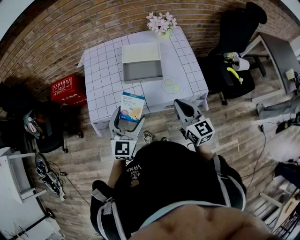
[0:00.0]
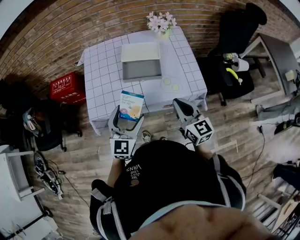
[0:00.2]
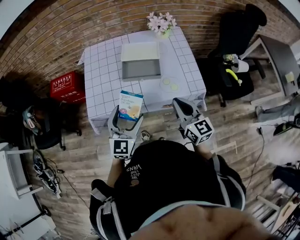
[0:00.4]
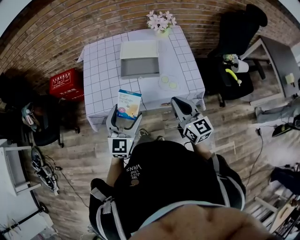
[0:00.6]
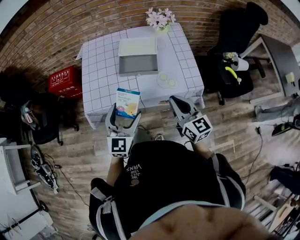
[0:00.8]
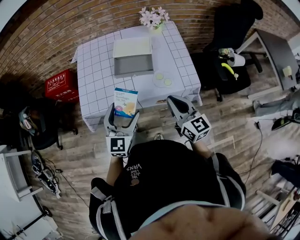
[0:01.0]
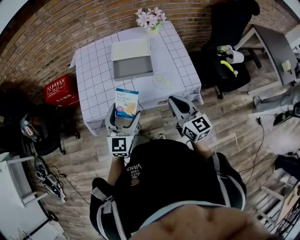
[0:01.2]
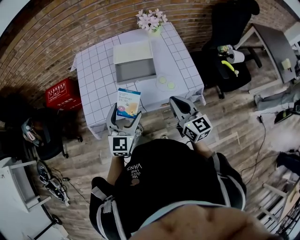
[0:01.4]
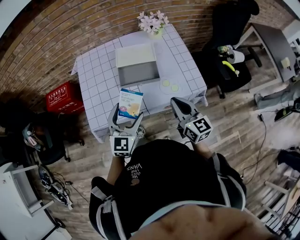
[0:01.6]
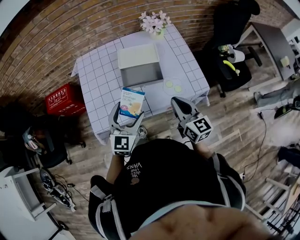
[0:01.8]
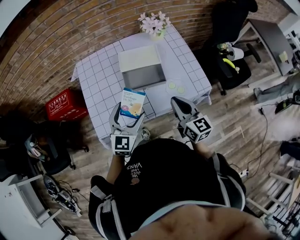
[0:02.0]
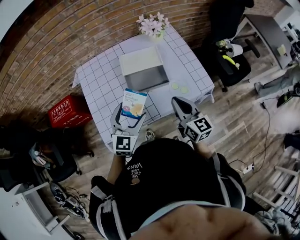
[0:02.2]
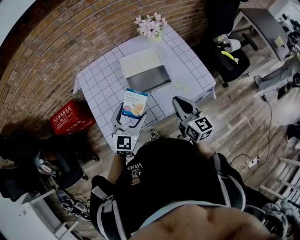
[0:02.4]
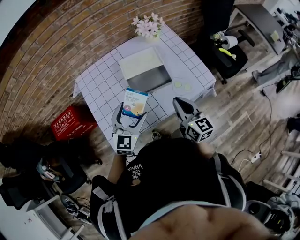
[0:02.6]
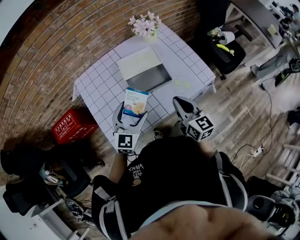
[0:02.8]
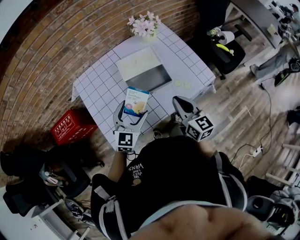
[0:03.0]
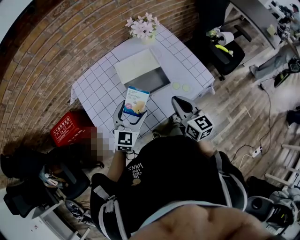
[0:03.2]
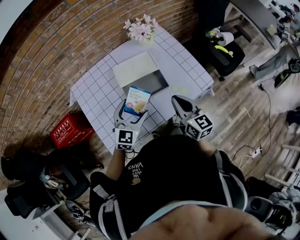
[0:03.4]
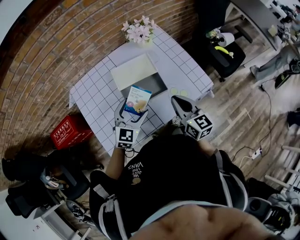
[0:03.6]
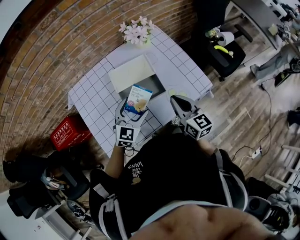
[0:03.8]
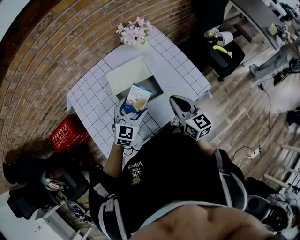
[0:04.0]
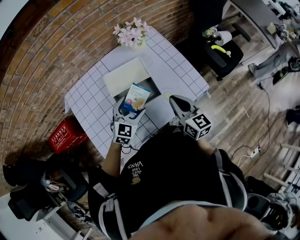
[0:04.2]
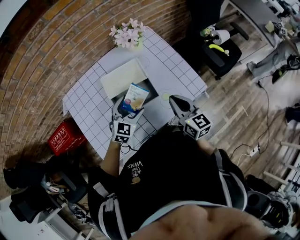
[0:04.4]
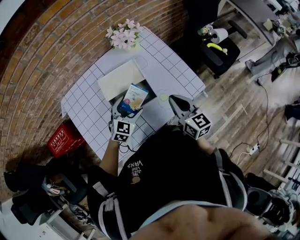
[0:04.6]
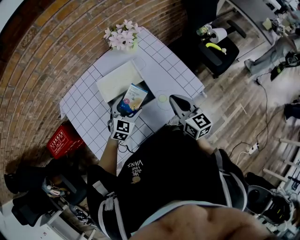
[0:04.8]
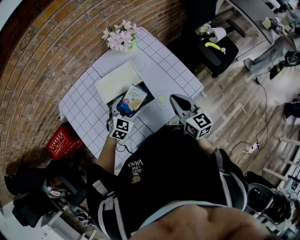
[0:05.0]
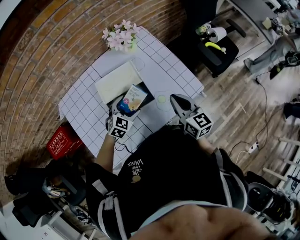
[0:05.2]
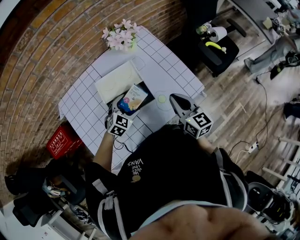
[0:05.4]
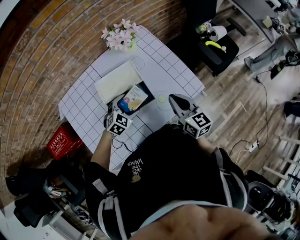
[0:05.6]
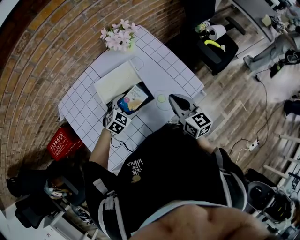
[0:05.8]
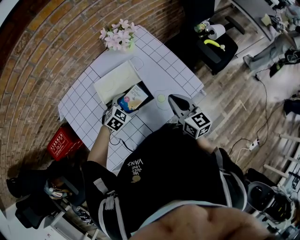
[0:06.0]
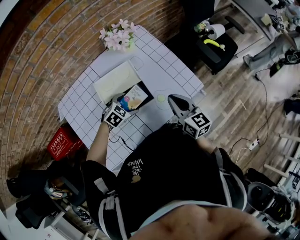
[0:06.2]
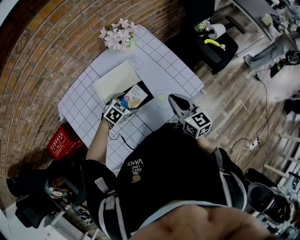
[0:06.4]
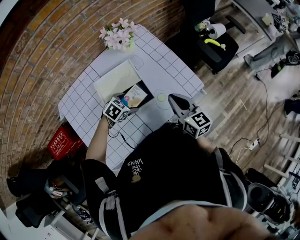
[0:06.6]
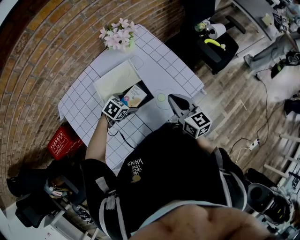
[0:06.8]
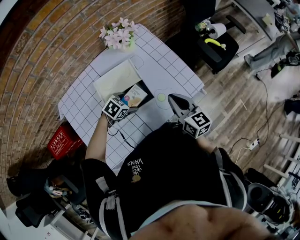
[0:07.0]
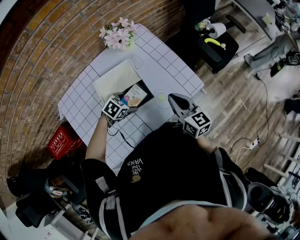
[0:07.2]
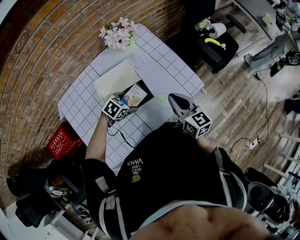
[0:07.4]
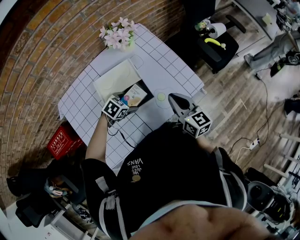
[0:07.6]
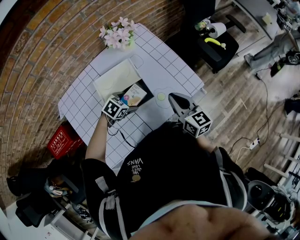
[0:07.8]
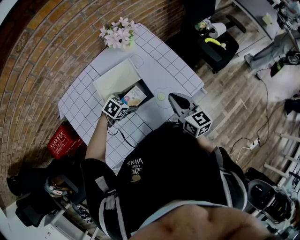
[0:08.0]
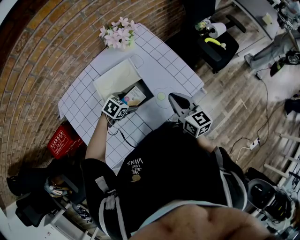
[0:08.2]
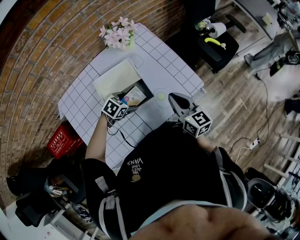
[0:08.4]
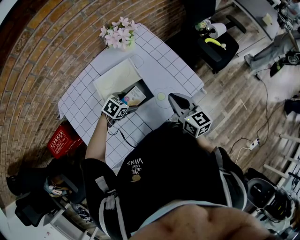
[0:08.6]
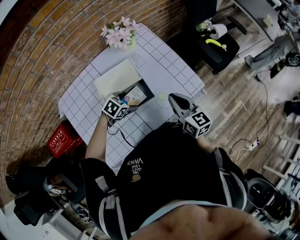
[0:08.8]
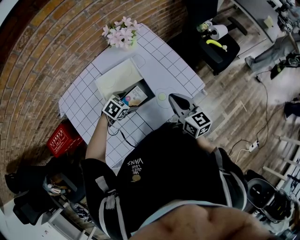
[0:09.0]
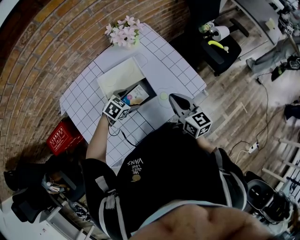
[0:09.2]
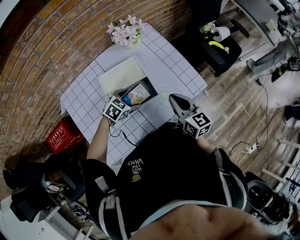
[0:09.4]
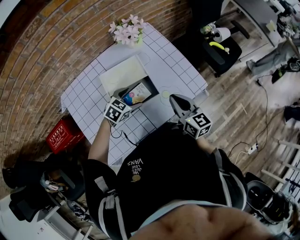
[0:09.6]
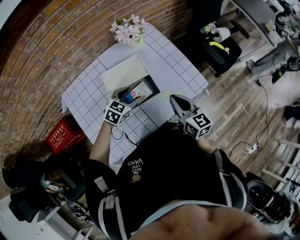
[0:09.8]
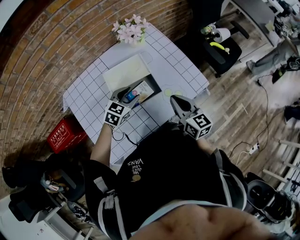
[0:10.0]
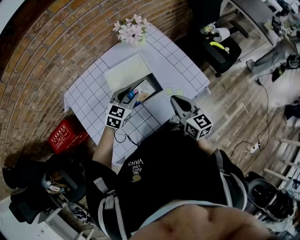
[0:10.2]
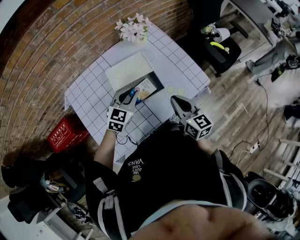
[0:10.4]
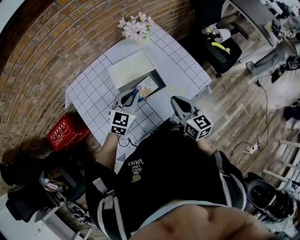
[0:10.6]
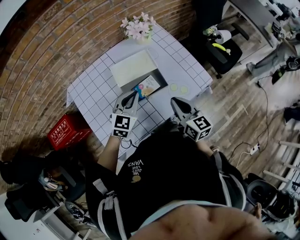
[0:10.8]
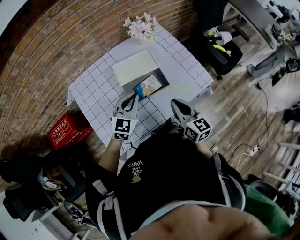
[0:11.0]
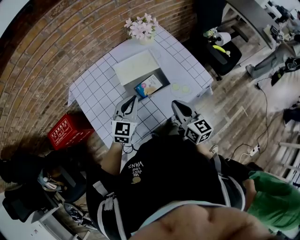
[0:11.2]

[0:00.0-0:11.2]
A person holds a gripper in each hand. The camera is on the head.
0:00.0 to 0:01.6: The grippers make only small movements.
0:01.6 to 0:03.2: The right gripper heads to the left and forward, covering about 10 cm. Meanwhile the left gripper travels forward and to the left by some 15 cm, and rotates approximately 20 degrees.
0:03.2 to 0:04.8: The left gripper travels forward, downward and to the right by approximately 15 cm, while the right gripper goes approximately 15 cm forward and to the right.
0:04.8 to 0:06.4: The left gripper goes some 5 cm downward, and swivels roughly 30 degrees.
0:06.4 to 0:08.0: The grippers make only small movements.
0:08.0 to 0:09.6: The left gripper changes place by about 5 cm.
0:09.6 to 0:11.2: The left gripper moves upward, backward and to the left, roughly 15 cm, tips its fingers upward by some 30 degrees, and closes its fingers. The right gripper travels backward and to the left by roughly 10 cm.

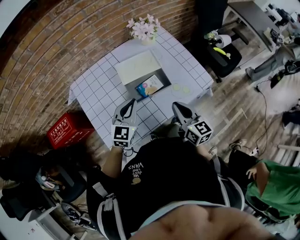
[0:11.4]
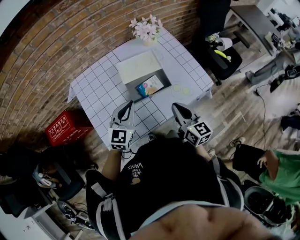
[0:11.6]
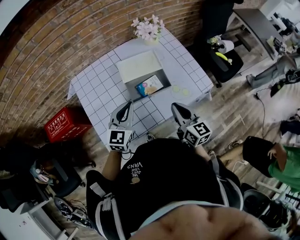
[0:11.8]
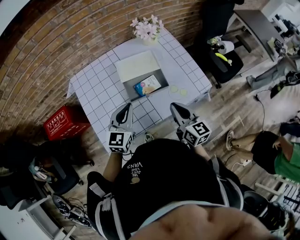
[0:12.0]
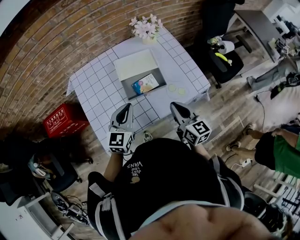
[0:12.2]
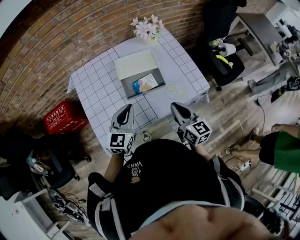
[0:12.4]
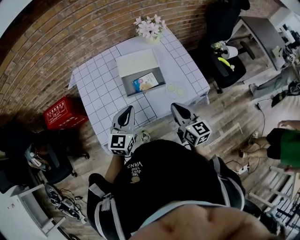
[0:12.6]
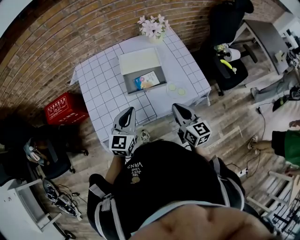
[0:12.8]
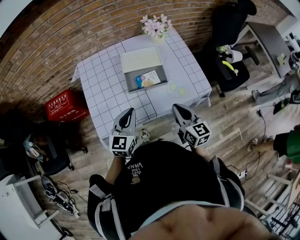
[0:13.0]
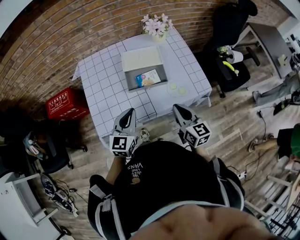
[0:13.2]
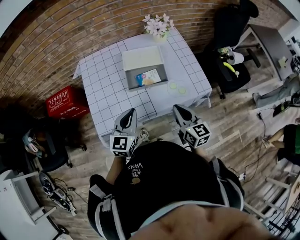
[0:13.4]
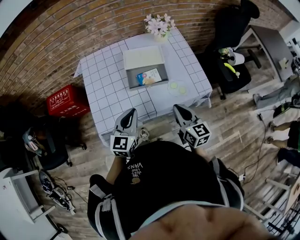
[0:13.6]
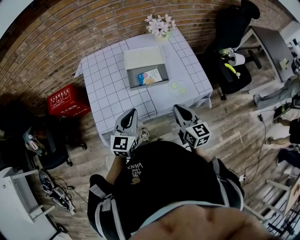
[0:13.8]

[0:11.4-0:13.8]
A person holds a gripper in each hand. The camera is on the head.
0:11.4 to 0:12.6: The left gripper is displaced backward by some 10 cm, while the right gripper changes place by roughly 5 cm.
0:12.6 to 0:13.8: The left gripper shifts approximately 5 cm backward.

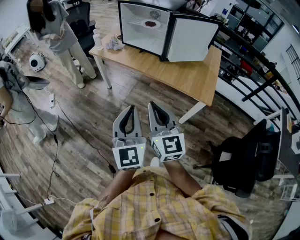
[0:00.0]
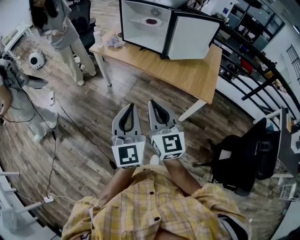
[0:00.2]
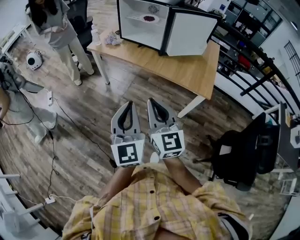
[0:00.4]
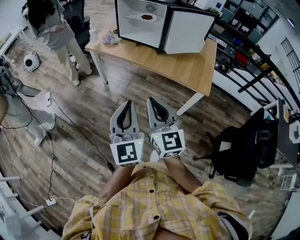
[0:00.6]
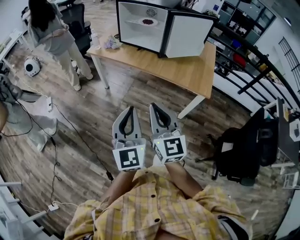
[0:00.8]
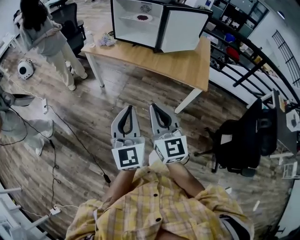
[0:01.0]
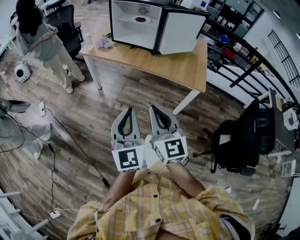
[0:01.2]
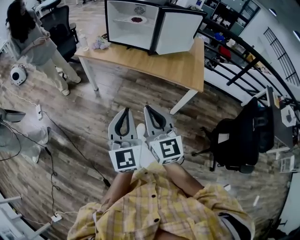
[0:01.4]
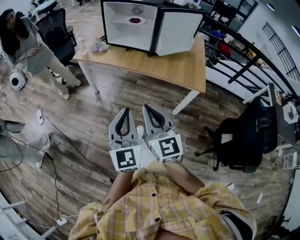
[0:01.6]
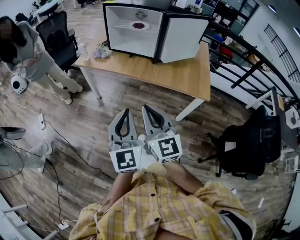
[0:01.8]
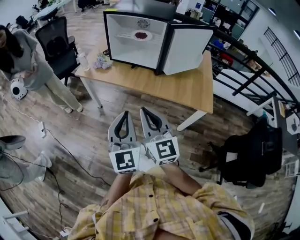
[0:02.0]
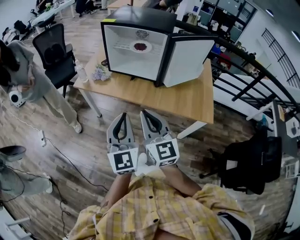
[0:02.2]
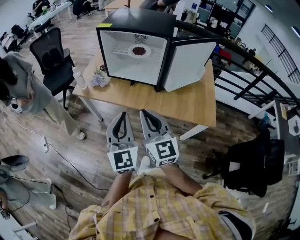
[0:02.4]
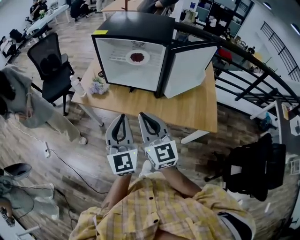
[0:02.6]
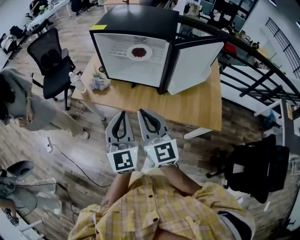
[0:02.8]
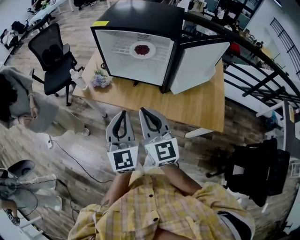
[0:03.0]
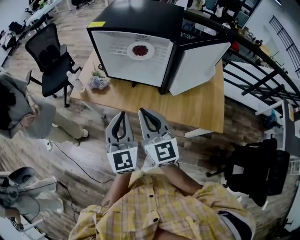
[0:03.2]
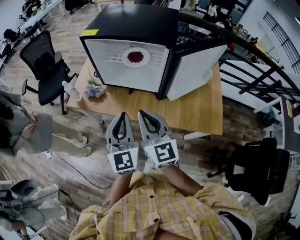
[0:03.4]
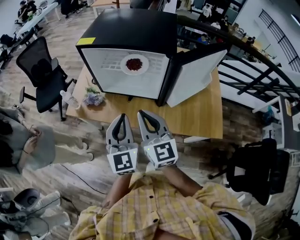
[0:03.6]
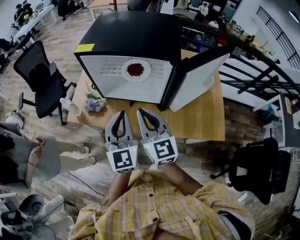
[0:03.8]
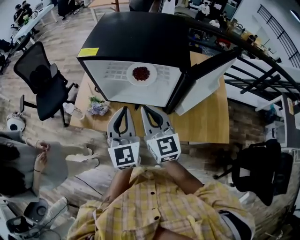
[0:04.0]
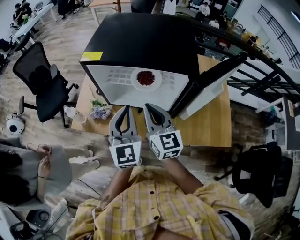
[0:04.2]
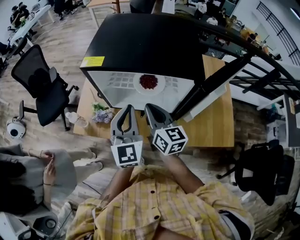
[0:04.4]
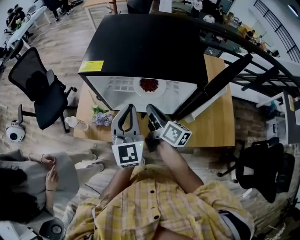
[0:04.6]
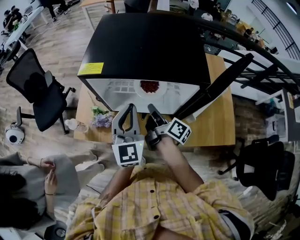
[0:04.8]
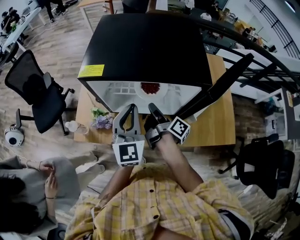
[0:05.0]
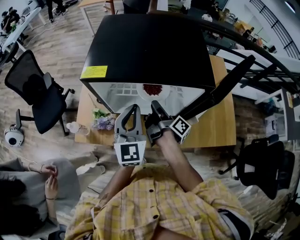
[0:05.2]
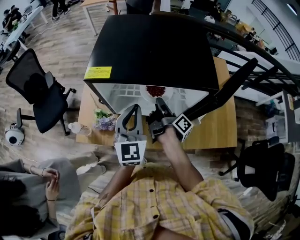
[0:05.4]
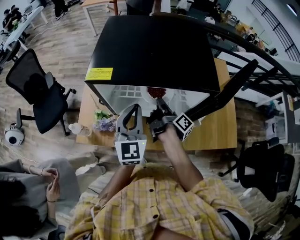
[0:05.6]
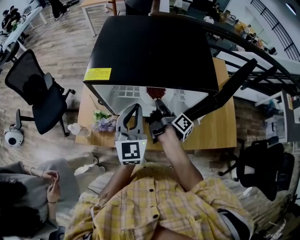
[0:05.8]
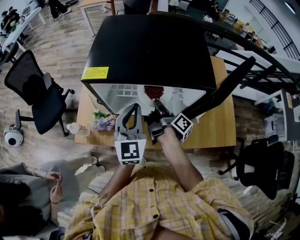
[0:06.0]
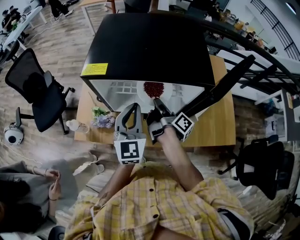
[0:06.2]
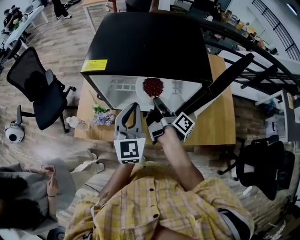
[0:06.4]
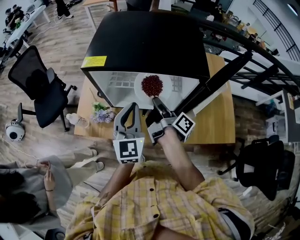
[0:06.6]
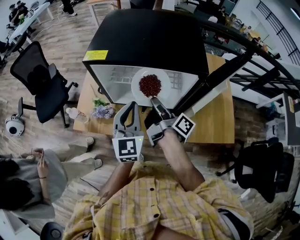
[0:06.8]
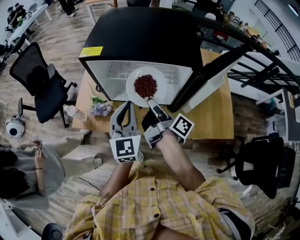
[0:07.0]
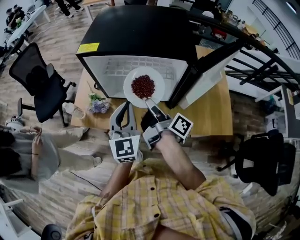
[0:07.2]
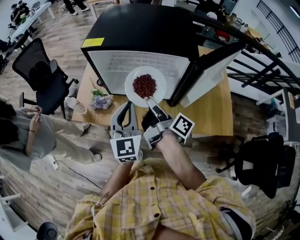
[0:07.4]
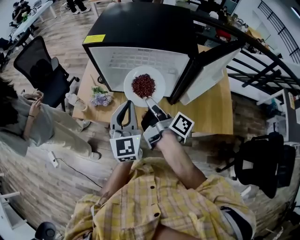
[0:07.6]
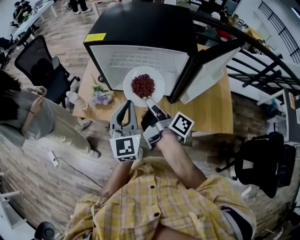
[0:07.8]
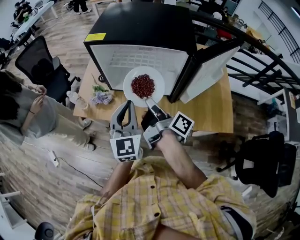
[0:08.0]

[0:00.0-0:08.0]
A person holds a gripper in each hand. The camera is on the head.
0:00.0 to 0:01.6: The two grippers go roughly 5 cm to the left.
0:01.6 to 0:03.2: Both grippers travel together forward, roughly 35 cm.
0:03.2 to 0:04.8: The right gripper shifts about 30 cm forward and downward, and rotates around the line of its fingers by approximately 70 degrees, clockwise from behind. The left gripper heads forward, covering roughly 25 cm.
0:04.8 to 0:06.4: The right gripper opens and closes again.
0:06.4 to 0:08.0: Both grippers travel together backward, about 15 cm.

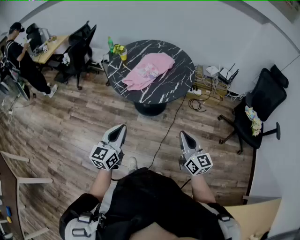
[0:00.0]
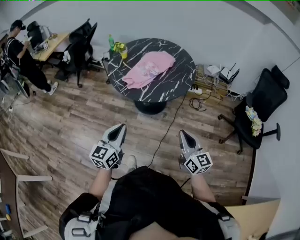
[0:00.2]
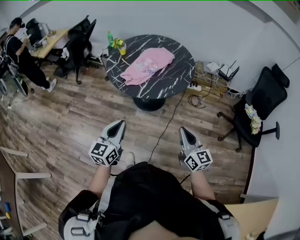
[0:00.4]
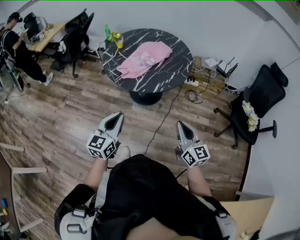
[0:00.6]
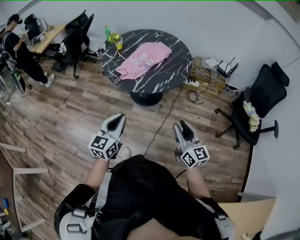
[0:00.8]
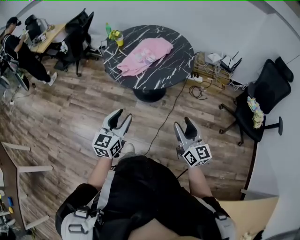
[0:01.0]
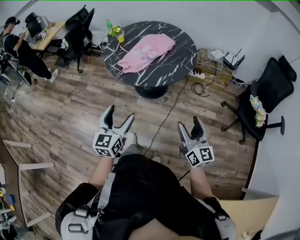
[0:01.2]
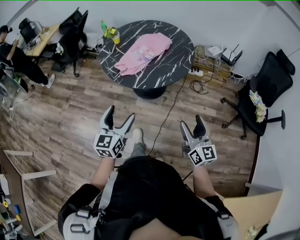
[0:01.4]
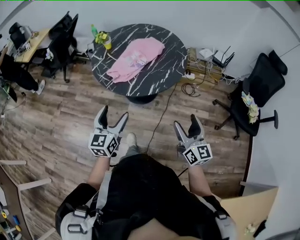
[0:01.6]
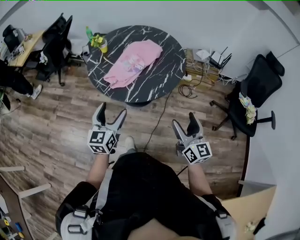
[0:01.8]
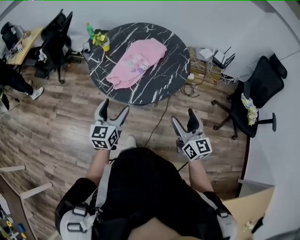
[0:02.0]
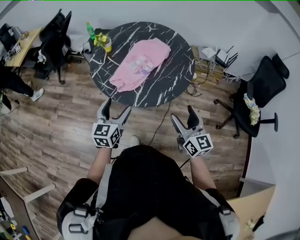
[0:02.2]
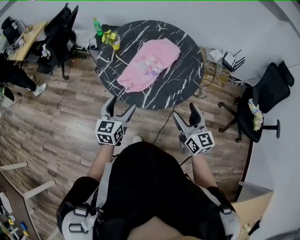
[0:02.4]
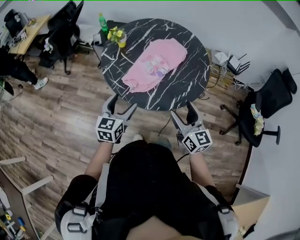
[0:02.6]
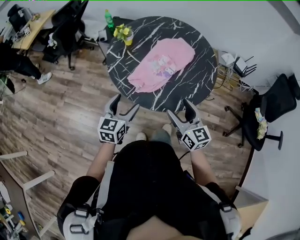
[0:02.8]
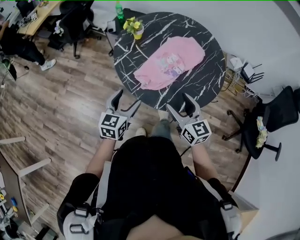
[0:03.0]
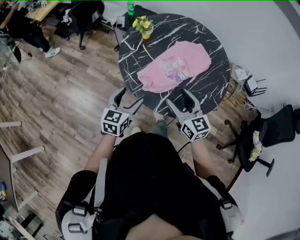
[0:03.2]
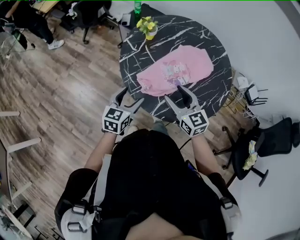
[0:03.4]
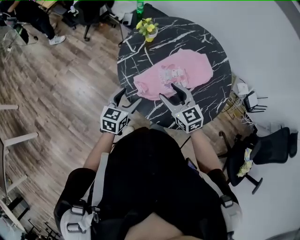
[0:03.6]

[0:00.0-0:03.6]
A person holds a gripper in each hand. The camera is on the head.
0:00.0 to 0:01.8: Both grippers move forward, roughly 15 cm. The right gripper opens. The left gripper opens its fingers.
0:01.8 to 0:03.6: The left gripper changes place by some 25 cm, and swivels roughly 20 degrees. Meanwhile the right gripper ends up approximately 40 cm from where it was, and rotates some 50 degrees.
